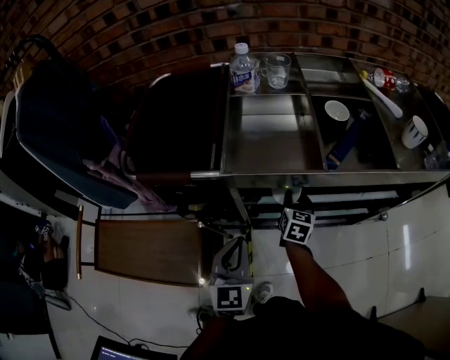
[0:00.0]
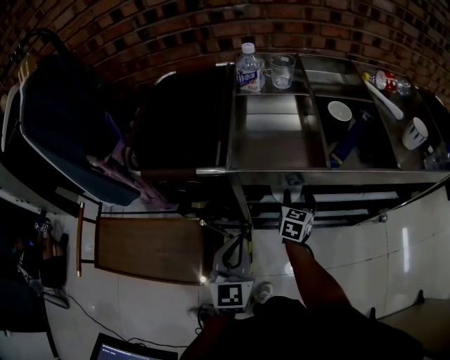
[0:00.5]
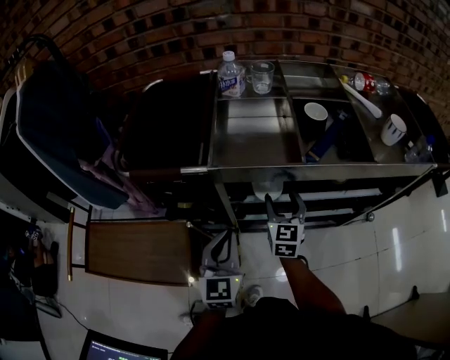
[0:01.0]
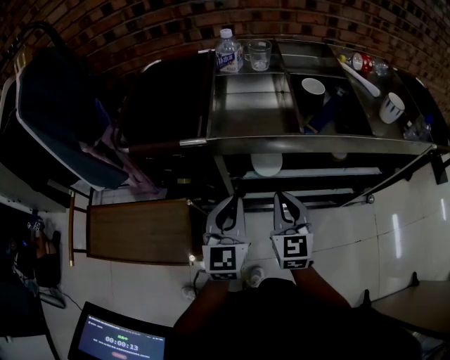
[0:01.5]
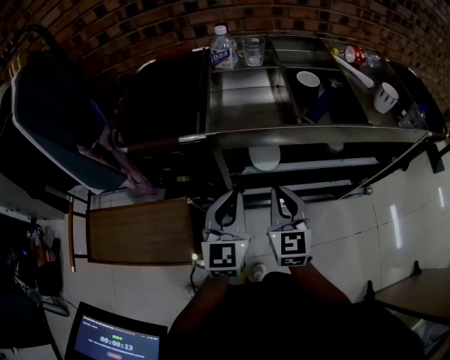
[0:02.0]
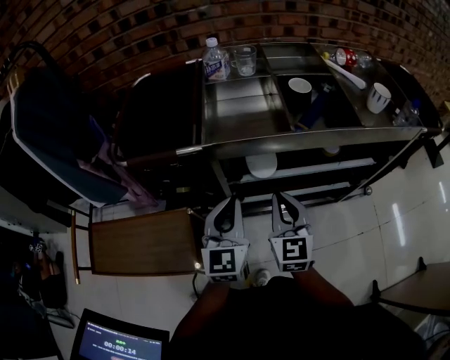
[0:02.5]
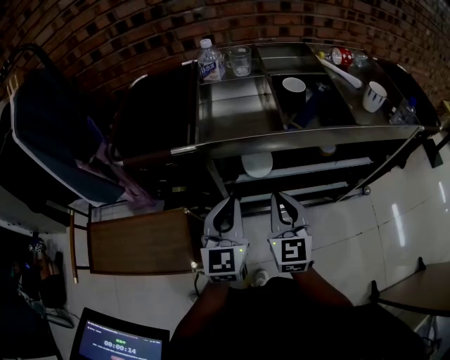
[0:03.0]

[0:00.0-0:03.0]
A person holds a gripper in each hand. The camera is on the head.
0:00.0 to 0:01.5: The right gripper moves backward and upward, roughly 20 cm, swivels about 30 degrees, and closes.
0:01.5 to 0:03.0: The grippers stay close to where they were, moving slightly.

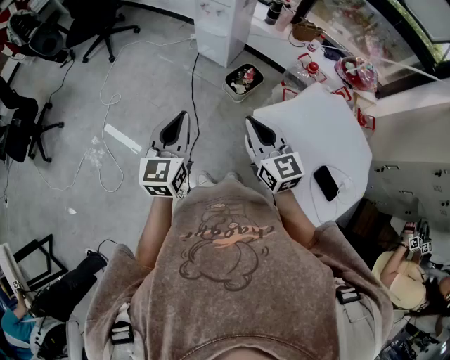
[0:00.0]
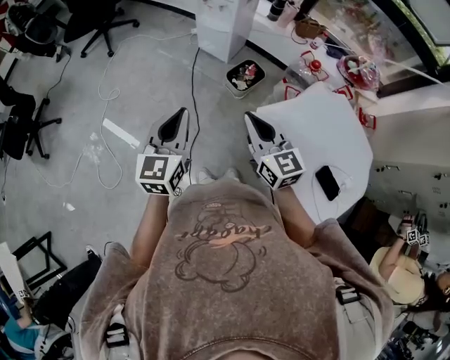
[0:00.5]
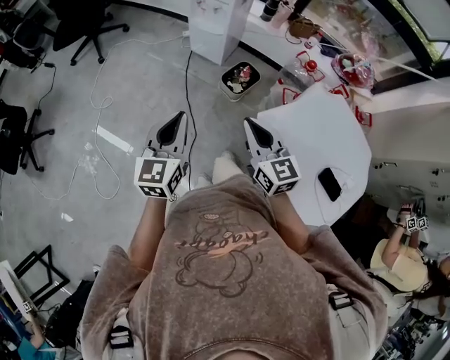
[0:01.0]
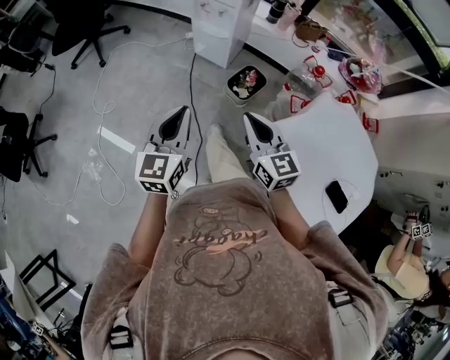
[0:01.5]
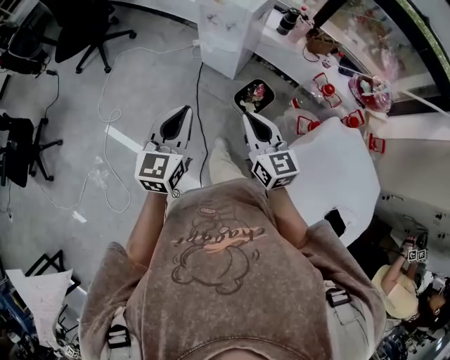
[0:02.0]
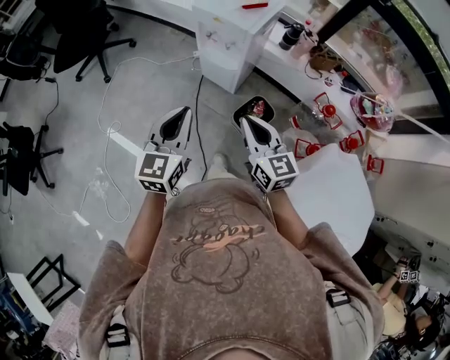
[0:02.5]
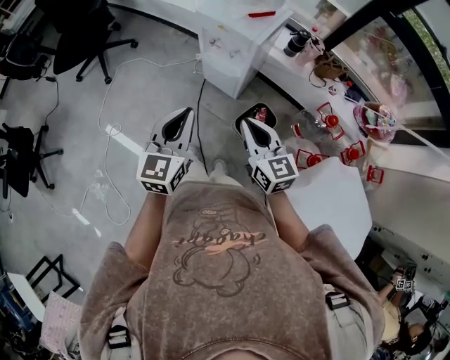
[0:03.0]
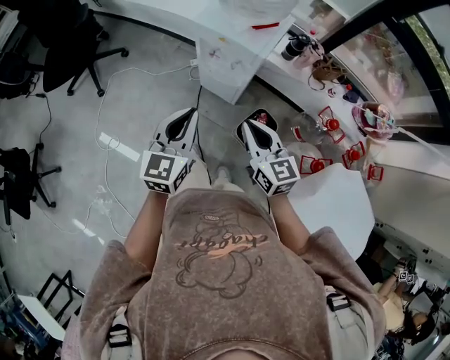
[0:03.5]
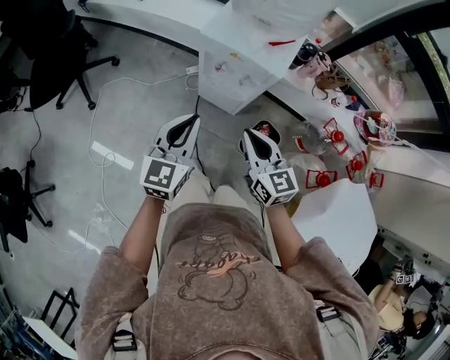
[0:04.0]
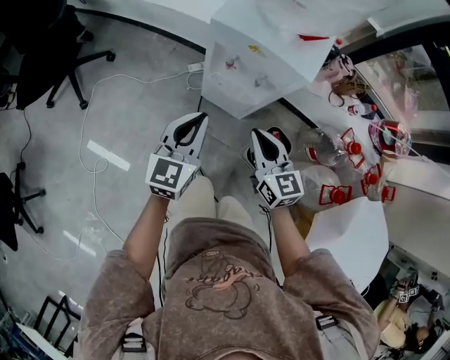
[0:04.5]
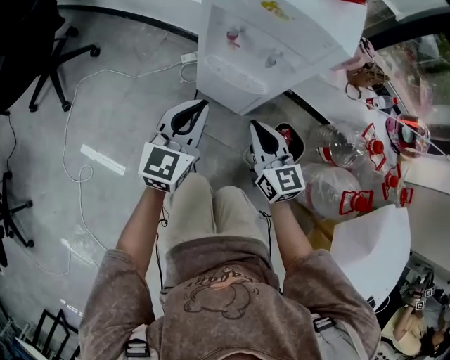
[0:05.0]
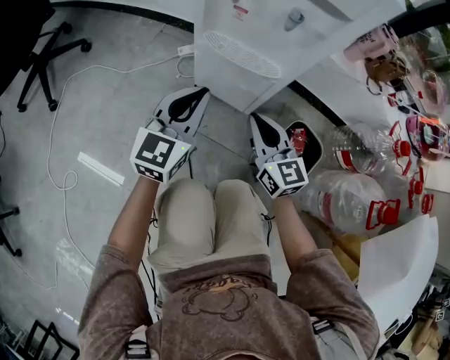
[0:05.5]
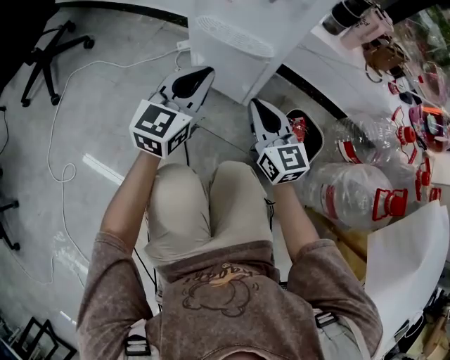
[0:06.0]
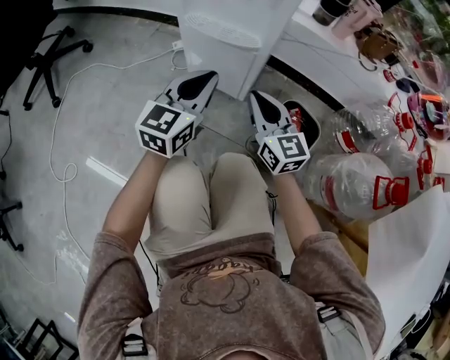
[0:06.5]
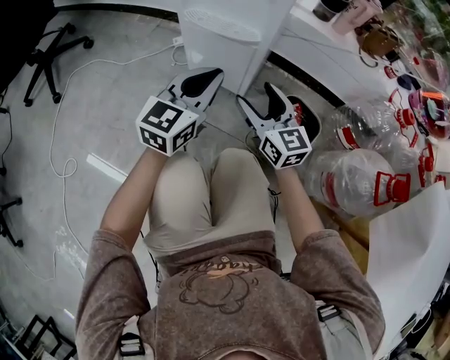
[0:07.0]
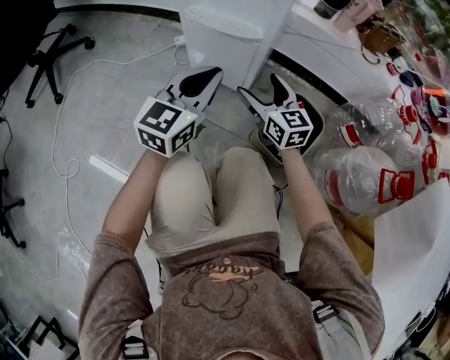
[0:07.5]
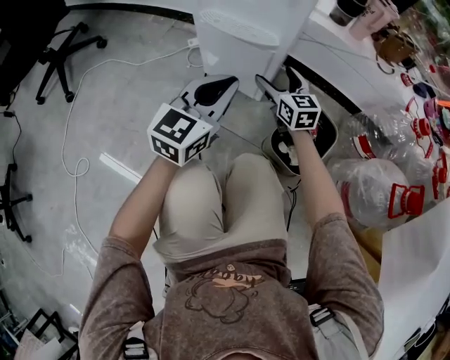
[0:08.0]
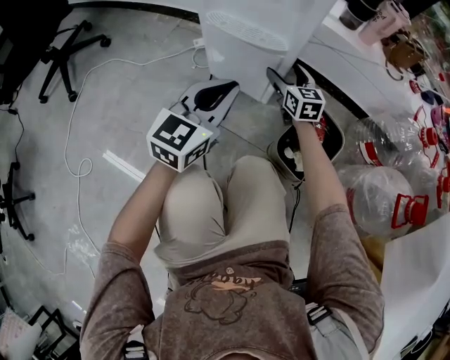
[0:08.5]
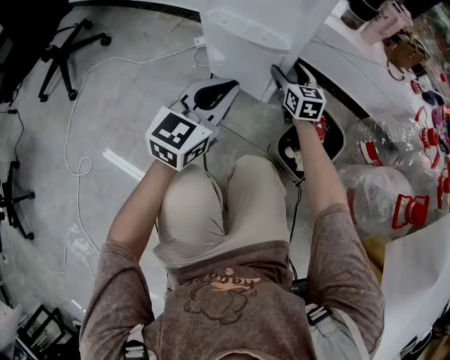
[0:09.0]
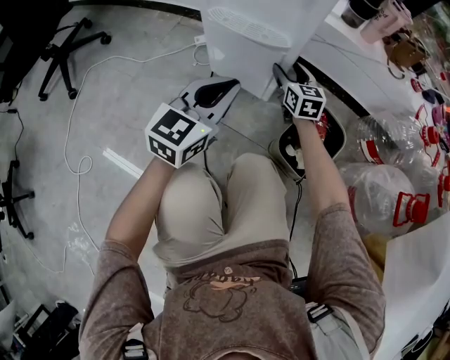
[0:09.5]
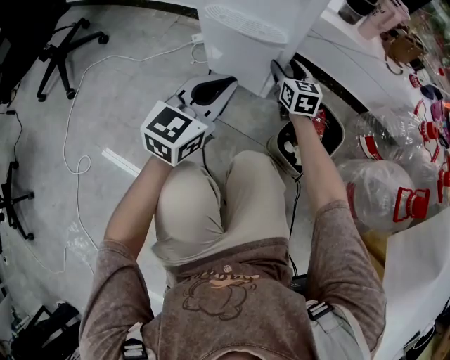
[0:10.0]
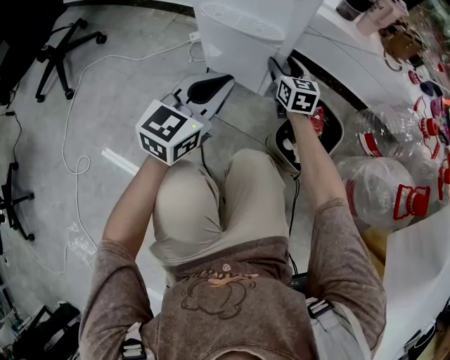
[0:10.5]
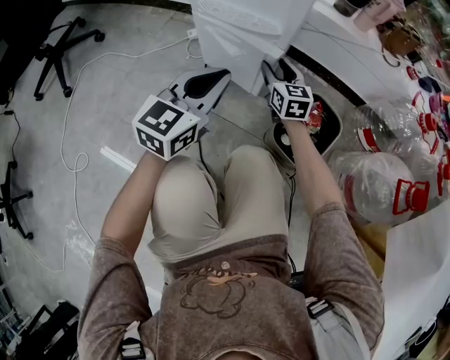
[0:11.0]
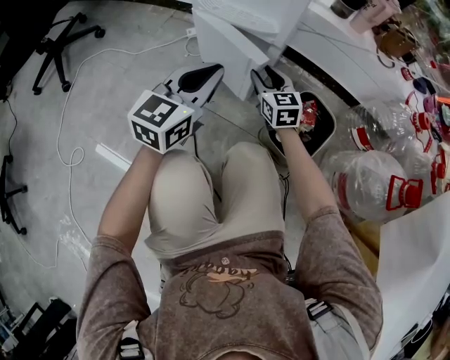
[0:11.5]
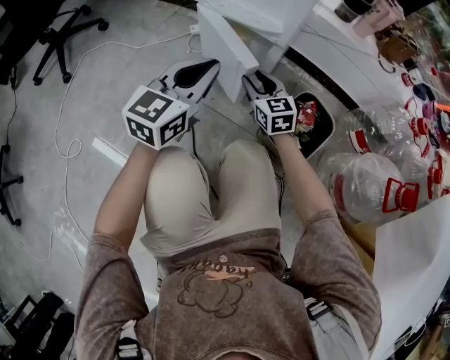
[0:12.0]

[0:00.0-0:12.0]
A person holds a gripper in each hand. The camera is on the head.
0:00.0 to 0:02.0: Both grippers travel together forward, approximately 25 cm.
0:02.0 to 0:04.0: Both grippers move forward, approximately 30 cm.
0:04.0 to 0:06.0: The two grippers go approximately 40 cm downward.
0:06.0 to 0:08.0: The left gripper goes approximately 5 cm to the right, while the right gripper moves forward and downward, roughly 15 cm, and opens.
0:08.0 to 0:10.0: The right gripper shifts by approximately 5 cm, and closes its fingers.
0:10.0 to 0:12.0: The right gripper shifts approximately 15 cm backward and to the left.

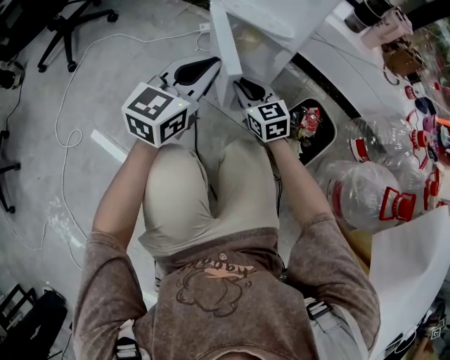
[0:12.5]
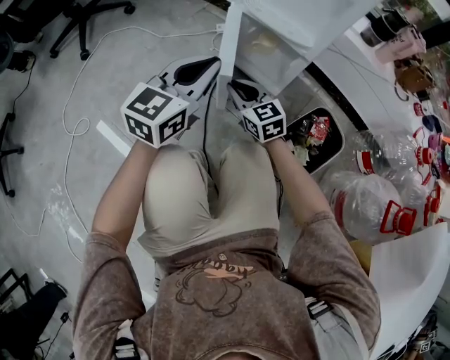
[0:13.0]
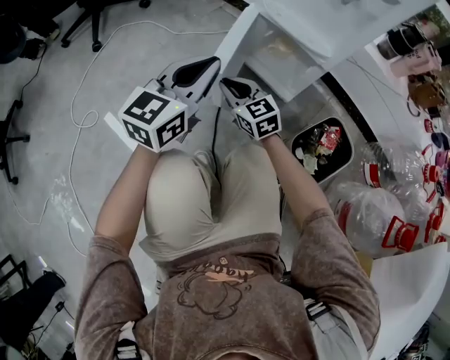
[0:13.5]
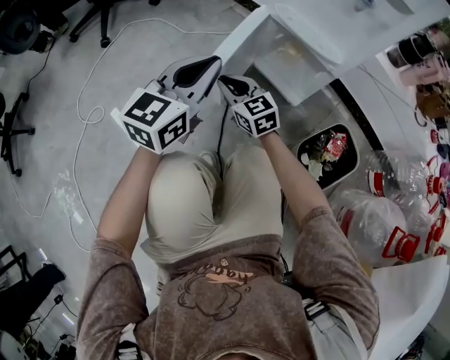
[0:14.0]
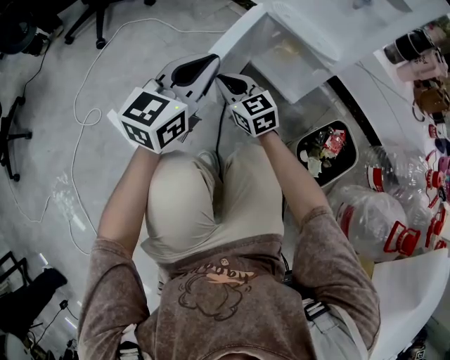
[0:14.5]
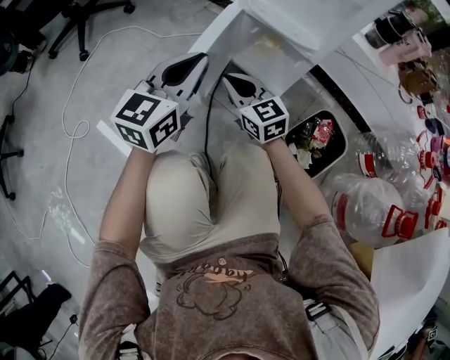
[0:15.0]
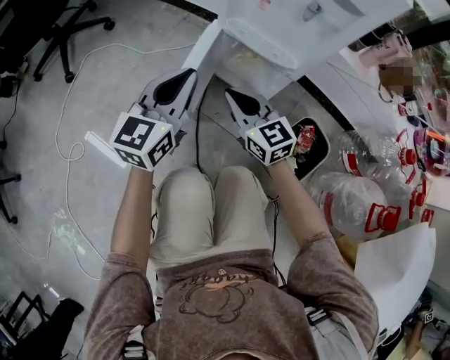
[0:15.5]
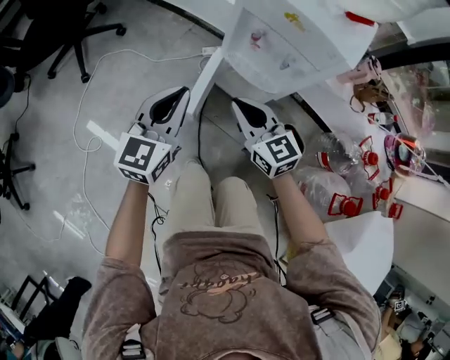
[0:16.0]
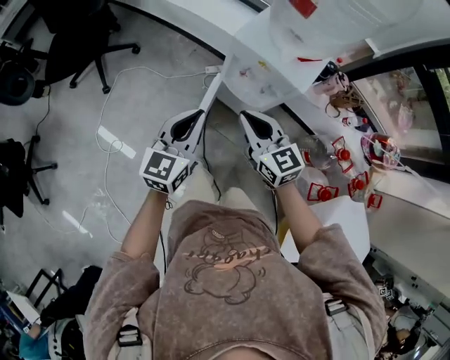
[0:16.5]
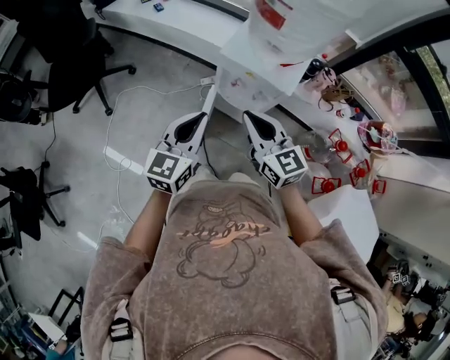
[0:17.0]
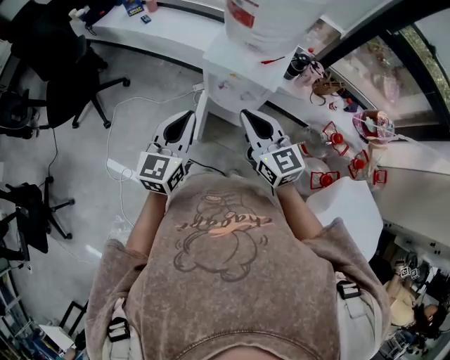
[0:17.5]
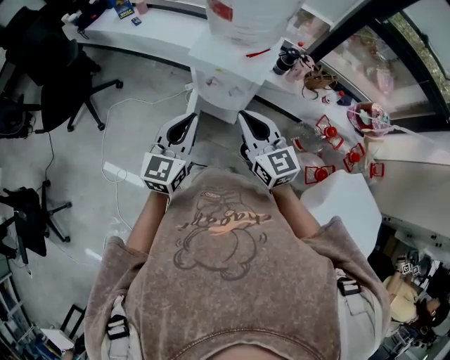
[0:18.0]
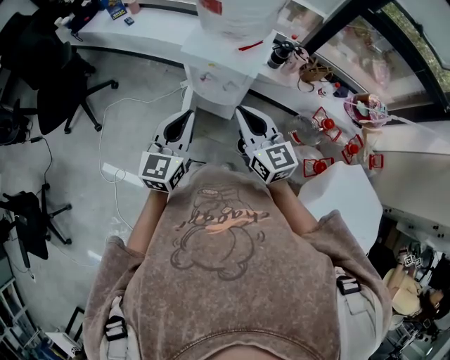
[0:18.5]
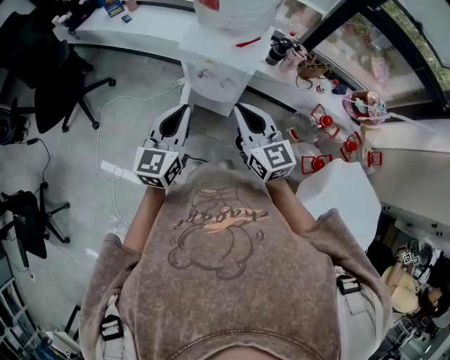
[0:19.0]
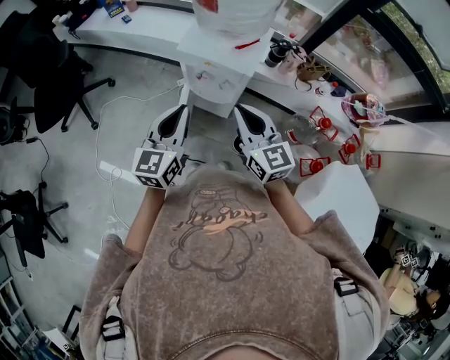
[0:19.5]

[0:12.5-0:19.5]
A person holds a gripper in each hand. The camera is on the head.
0:12.5 to 0:14.5: The right gripper heads to the left, covering about 15 cm. Meanwhile the left gripper heads to the left, covering about 10 cm.
0:14.5 to 0:16.0: The right gripper goes some 30 cm upward. Meanwhile the left gripper goes some 20 cm upward.
0:16.0 to 0:17.5: The two grippers go roughly 30 cm upward.
0:17.5 to 0:19.5: Both grippers move to the right, about 5 cm.

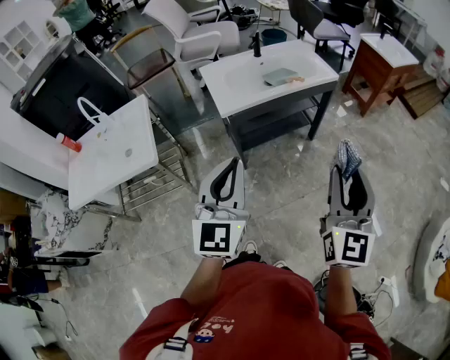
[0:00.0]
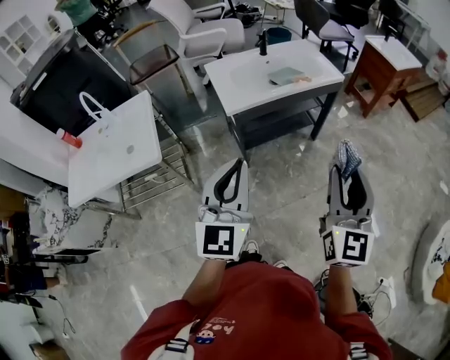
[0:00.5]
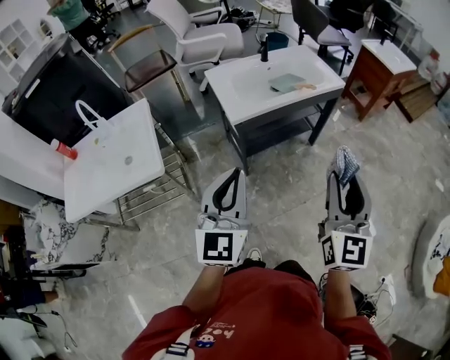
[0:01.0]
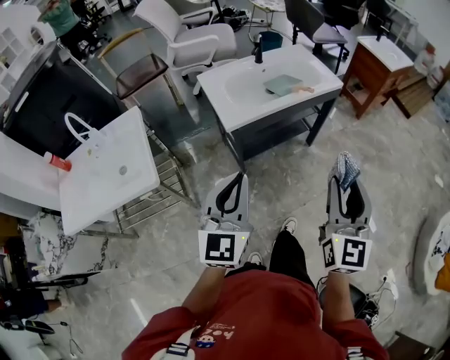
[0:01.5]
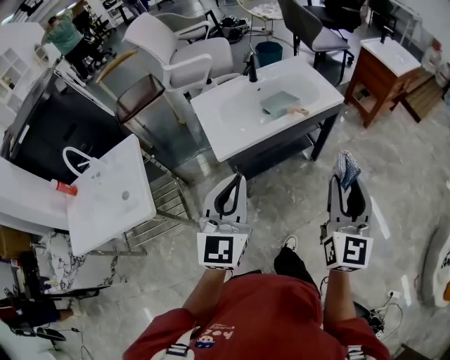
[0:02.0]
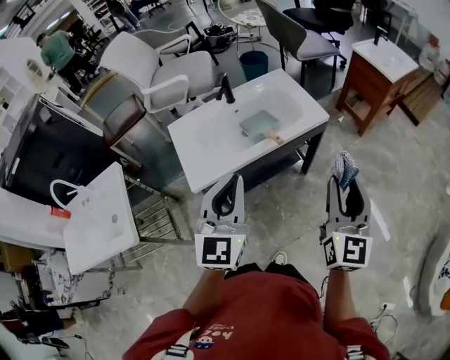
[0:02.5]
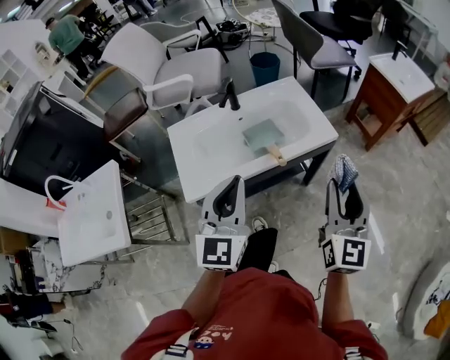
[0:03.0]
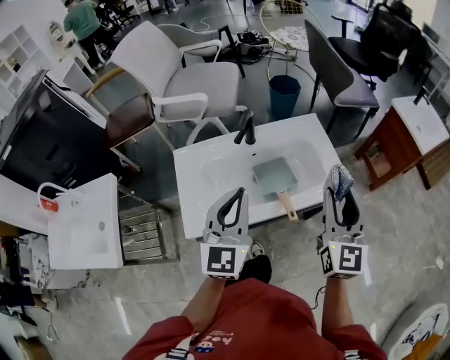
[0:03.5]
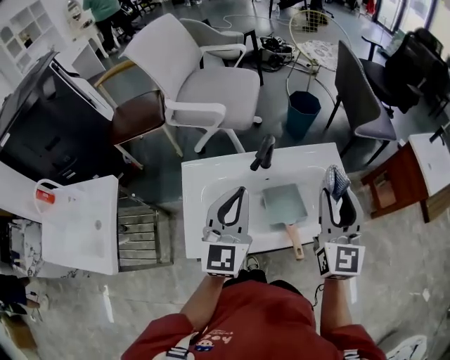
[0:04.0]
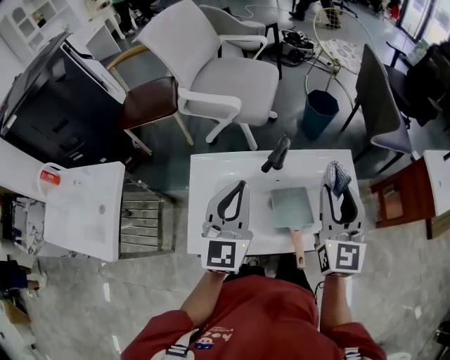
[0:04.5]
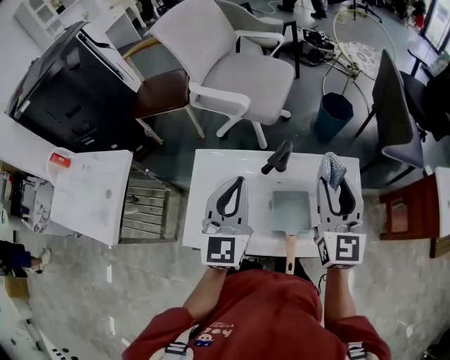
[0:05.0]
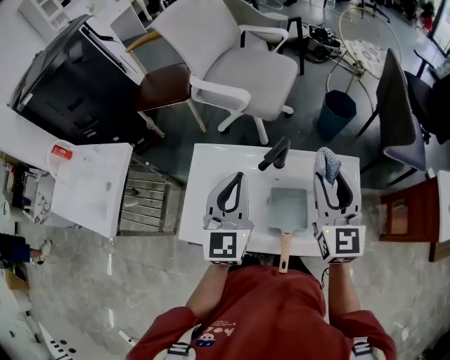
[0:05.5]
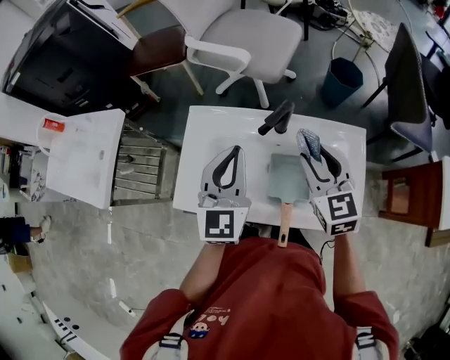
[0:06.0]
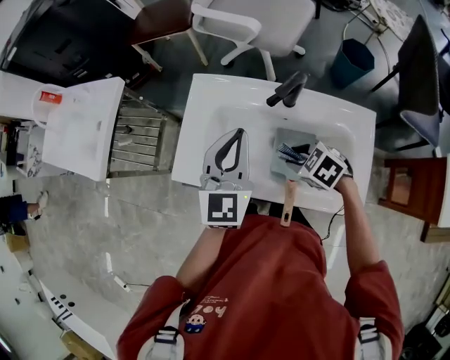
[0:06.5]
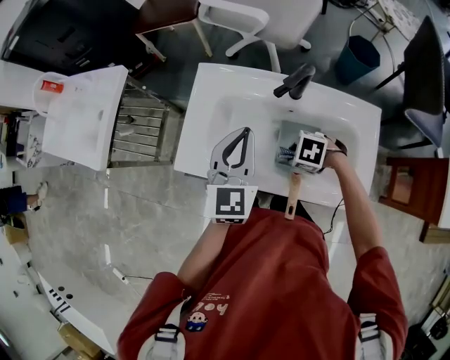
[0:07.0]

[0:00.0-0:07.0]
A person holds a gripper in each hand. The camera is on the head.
0:00.0 to 0:02.0: The two grippers go roughly 15 cm forward.
0:02.0 to 0:03.5: The grippers both shift forward by about 35 cm.
0:03.5 to 0:05.0: The two grippers go roughly 20 cm forward. The right gripper turns by some 20 degrees. The left gripper changes its angle by approximately 20 degrees.
0:05.0 to 0:07.0: The left gripper heads downward, covering approximately 10 cm, while the right gripper goes some 35 cm downward, and angles its fingers downward, by roughly 70 degrees.
